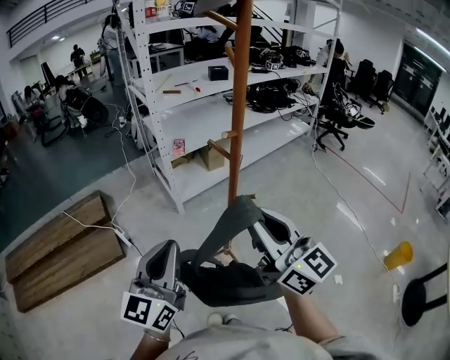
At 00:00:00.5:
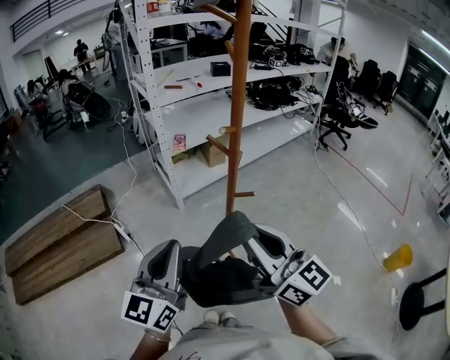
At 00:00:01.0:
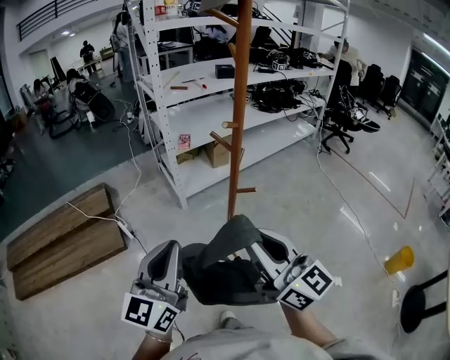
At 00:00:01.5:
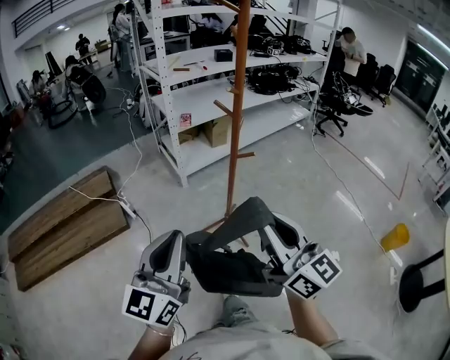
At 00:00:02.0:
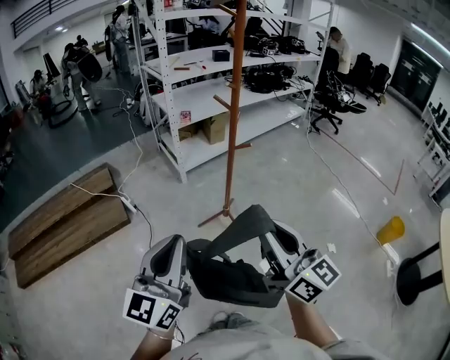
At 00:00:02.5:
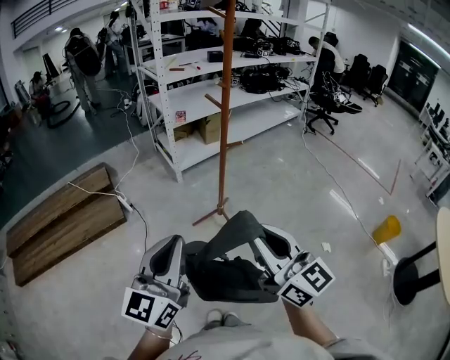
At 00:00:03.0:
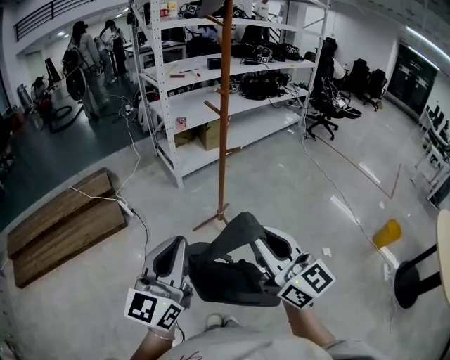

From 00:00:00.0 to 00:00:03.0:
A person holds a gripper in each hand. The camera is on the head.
From 00:00:00.0 to 00:00:01.5: Both grippers travel together backward, about 15 cm.
From 00:00:01.5 to 00:00:03.0: Both grippers move backward, approximately 10 cm.

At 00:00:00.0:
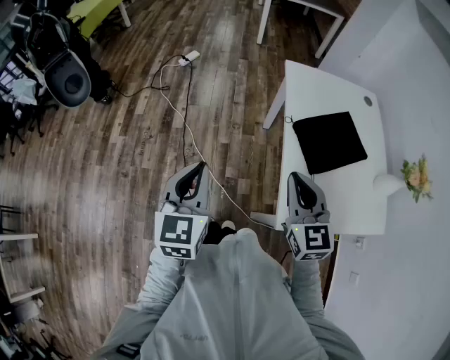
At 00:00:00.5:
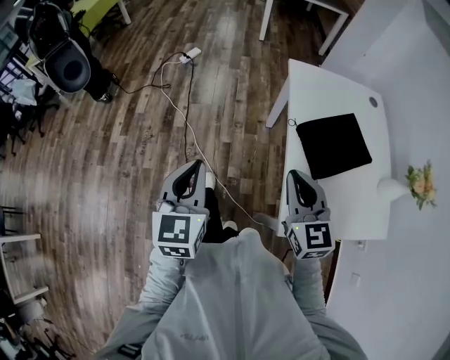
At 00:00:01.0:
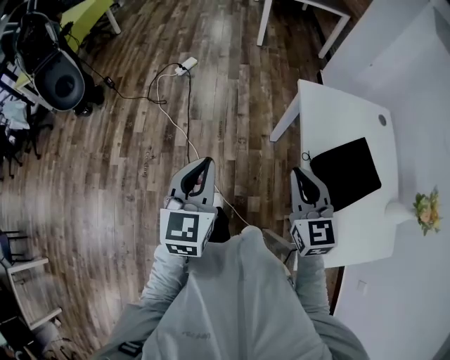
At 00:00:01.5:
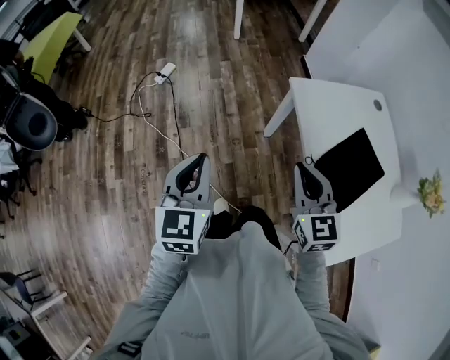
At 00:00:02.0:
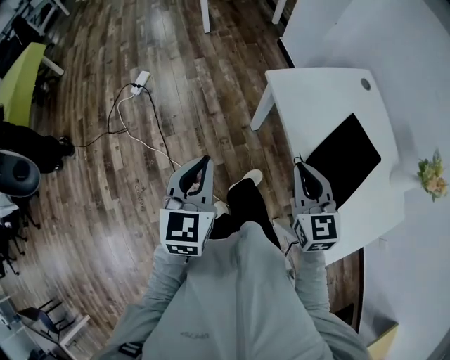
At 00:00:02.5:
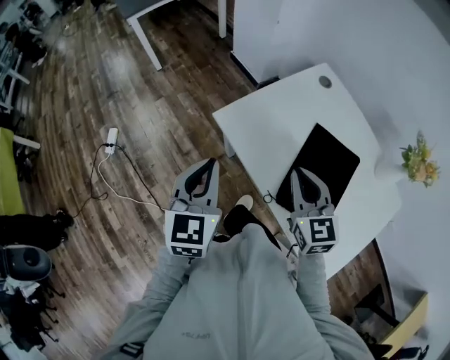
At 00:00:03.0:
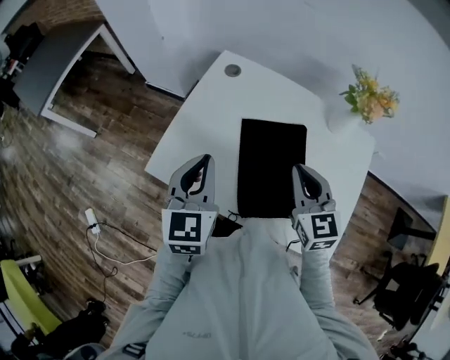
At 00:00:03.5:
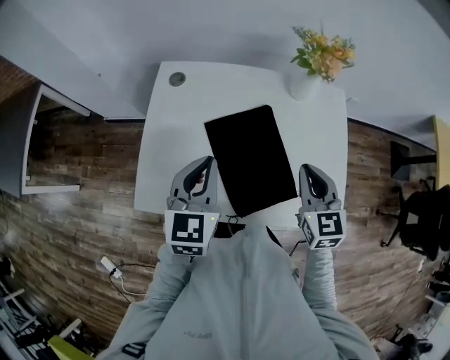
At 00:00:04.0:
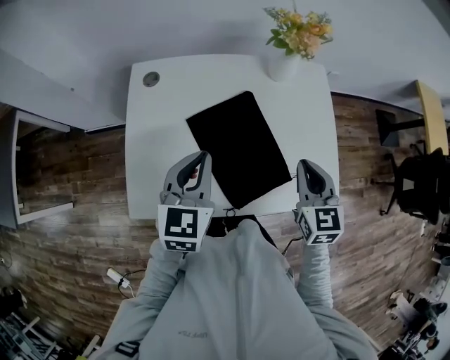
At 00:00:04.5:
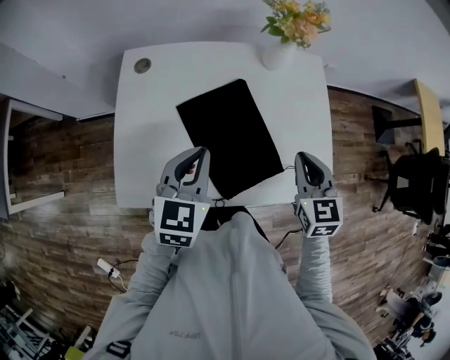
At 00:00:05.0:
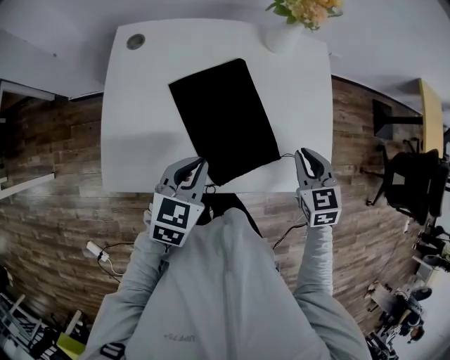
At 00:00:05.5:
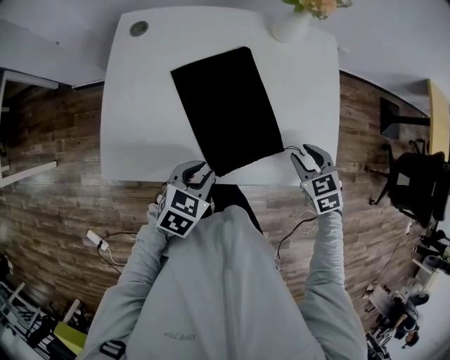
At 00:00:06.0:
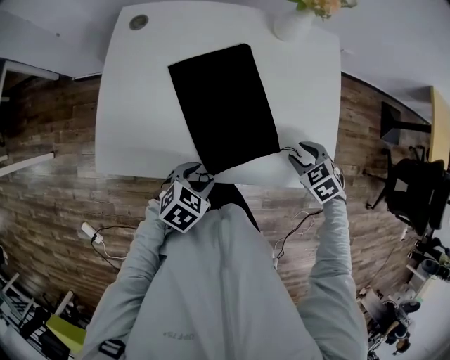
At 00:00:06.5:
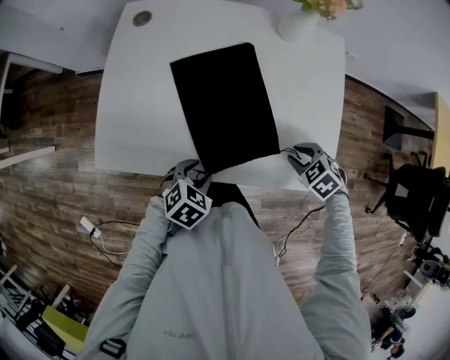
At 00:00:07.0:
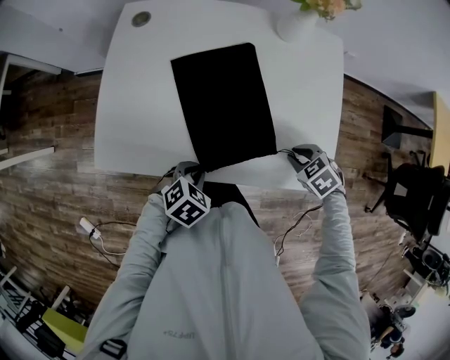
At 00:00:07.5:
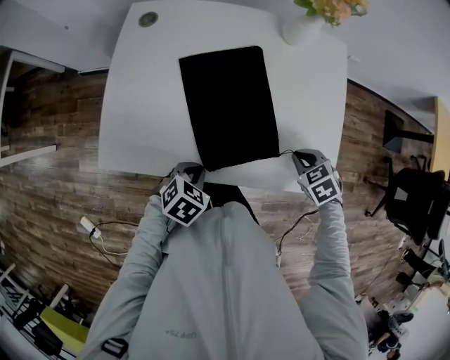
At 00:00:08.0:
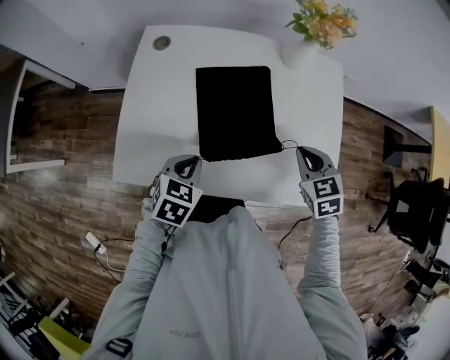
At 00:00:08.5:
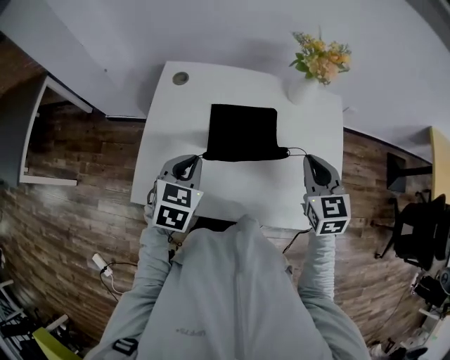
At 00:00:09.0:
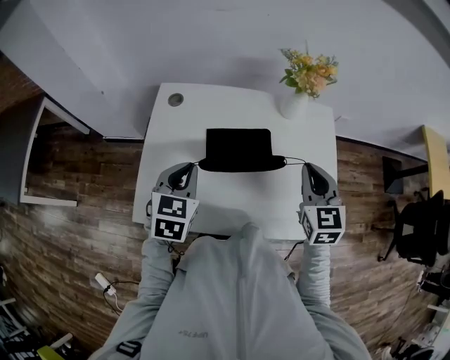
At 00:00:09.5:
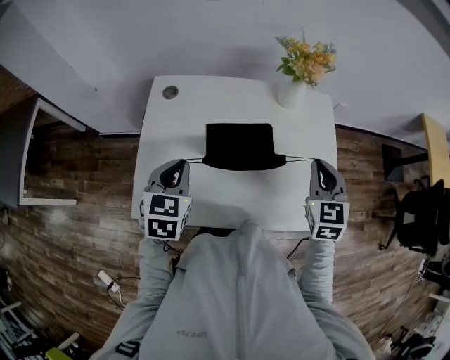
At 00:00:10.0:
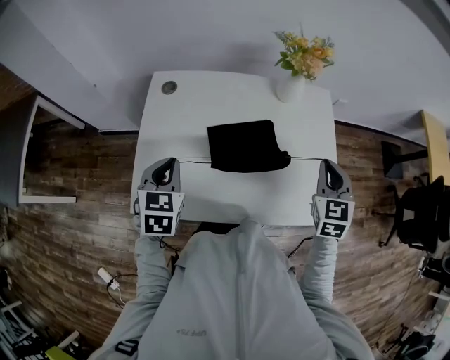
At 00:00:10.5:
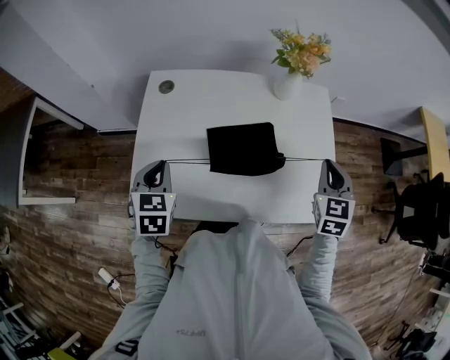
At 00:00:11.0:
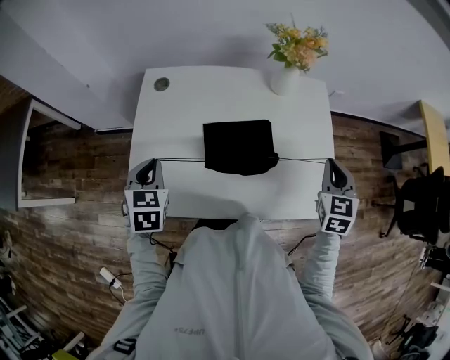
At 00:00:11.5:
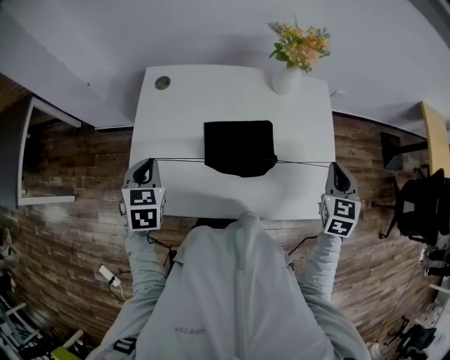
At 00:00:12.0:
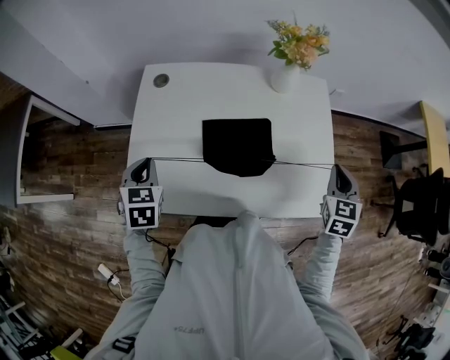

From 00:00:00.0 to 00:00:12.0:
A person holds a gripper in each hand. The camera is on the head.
From 00:00:00.0 to 00:00:02.0: The grippers both shift forward by about 30 cm. The left gripper swivels approximately 20 degrees. Meanwhile the right gripper changes its angle by approximately 20 degrees.
From 00:00:02.0 to 00:00:04.0: The left gripper moves roughly 50 cm, and turns by roughly 80 degrees; the right gripper ends up roughly 30 cm from where it was, and changes its angle by some 80 degrees.
From 00:00:04.0 to 00:00:06.0: The left gripper travels downward, backward and to the right by about 25 cm, points its fingers roughly 30 degrees further downward, and opens its fingers; the right gripper goes roughly 20 cm downward and to the right, tips its fingers downward by about 40 degrees, and opens up.
From 00:00:06.0 to 00:00:08.0: The left gripper is displaced forward, to the left and upward by roughly 15 cm, and closes. Meanwhile the right gripper heads upward, forward and to the left, covering about 15 cm, turns by roughly 30 degrees, and closes.
From 00:00:08.0 to 00:00:10.0: The left gripper travels upward, to the left and forward by approximately 15 cm, and rotates some 20 degrees. The right gripper goes some 10 cm upward, and rotates roughly 30 degrees.
From 00:00:10.0 to 00:00:12.0: The right gripper shifts approximately 5 cm to the right, while the left gripper shifts roughly 5 cm to the left.

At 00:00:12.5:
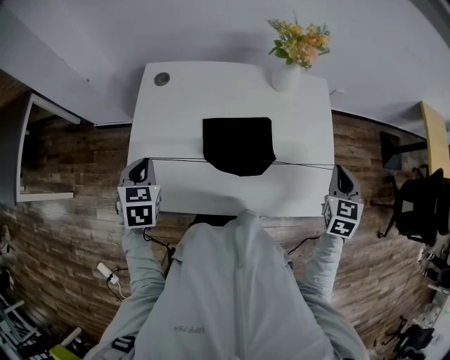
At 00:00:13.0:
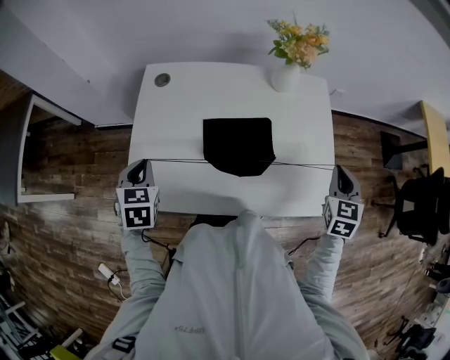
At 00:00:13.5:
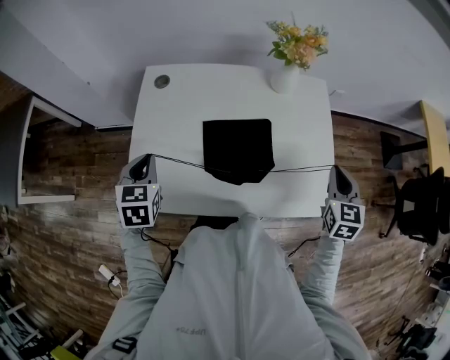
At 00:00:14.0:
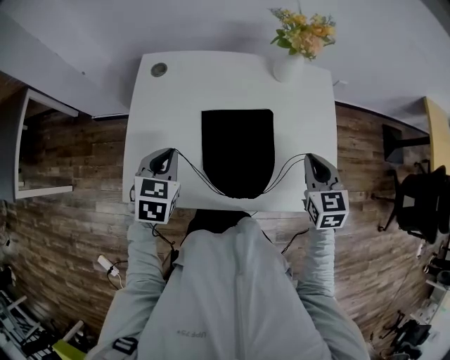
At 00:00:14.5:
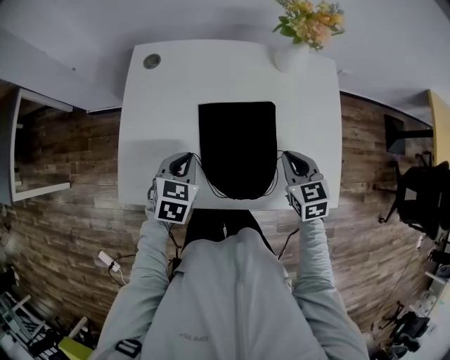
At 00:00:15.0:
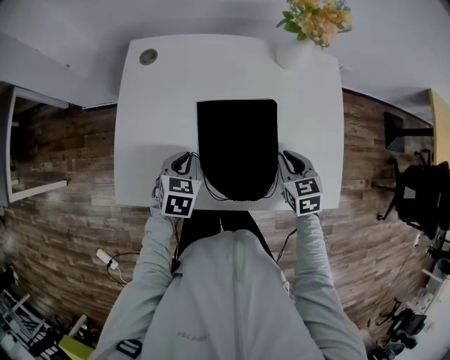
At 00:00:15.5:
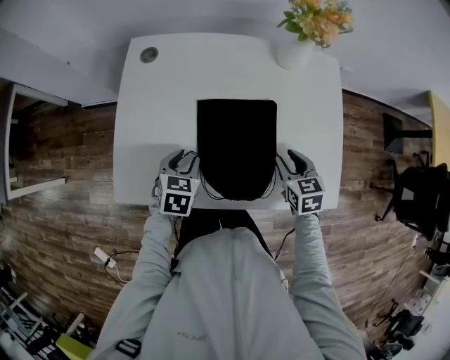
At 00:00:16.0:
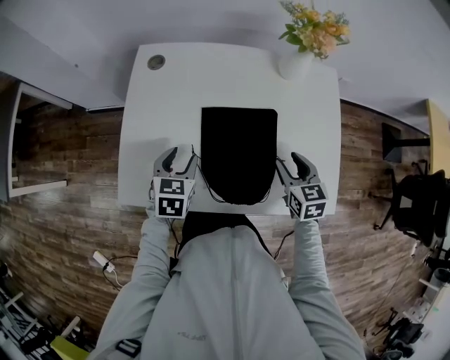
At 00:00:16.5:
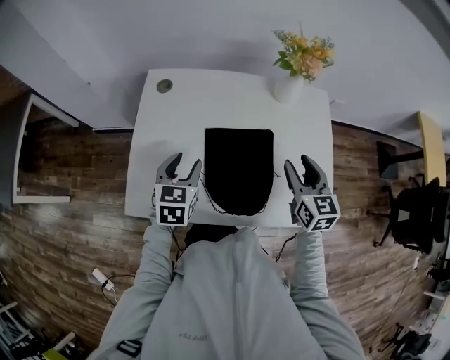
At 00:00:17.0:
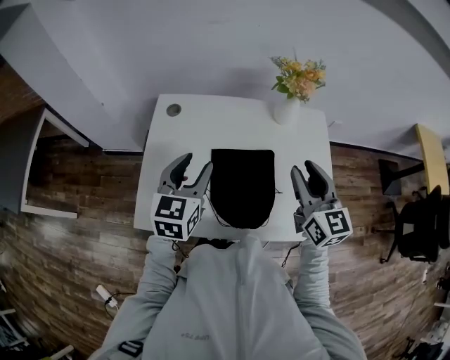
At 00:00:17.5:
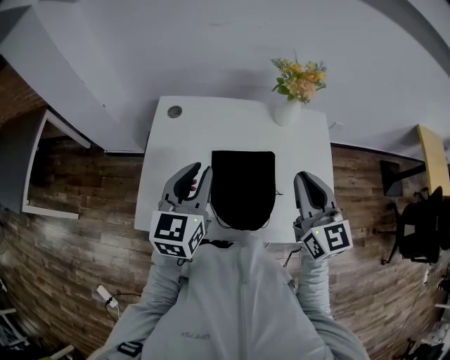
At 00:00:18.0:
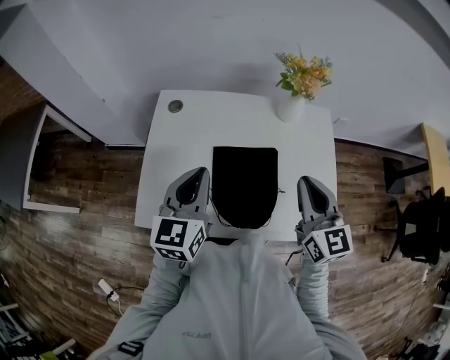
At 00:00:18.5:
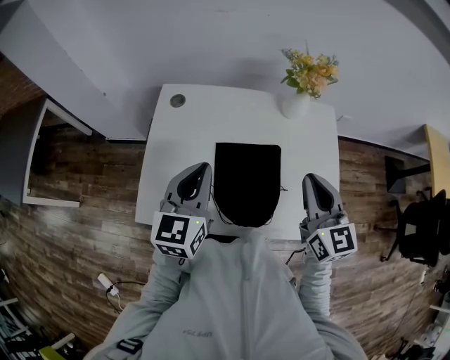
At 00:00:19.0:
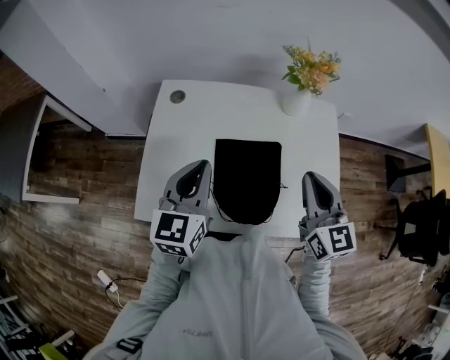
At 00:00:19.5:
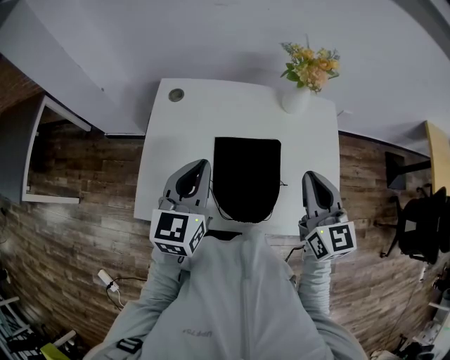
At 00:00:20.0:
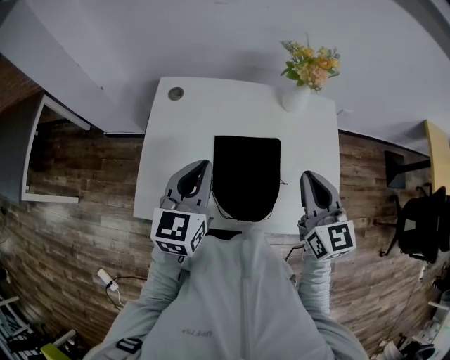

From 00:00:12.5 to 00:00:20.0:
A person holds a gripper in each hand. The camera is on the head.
From 00:00:12.5 to 00:00:14.5: The right gripper shifts about 20 cm to the left and downward, and turns by roughly 30 degrees, while the left gripper travels to the right and downward by approximately 15 cm.
From 00:00:14.5 to 00:00:16.5: The left gripper heads upward, covering approximately 5 cm, and opens. Meanwhile the right gripper heads upward, covering approximately 10 cm, turns by about 20 degrees, and opens up.
From 00:00:16.5 to 00:00:18.0: Both grippers travel together upward, about 10 cm. The right gripper closes up. The left gripper changes its angle by roughly 20 degrees, and closes.
From 00:00:18.0 to 00:00:20.0: Neither gripper changes place.

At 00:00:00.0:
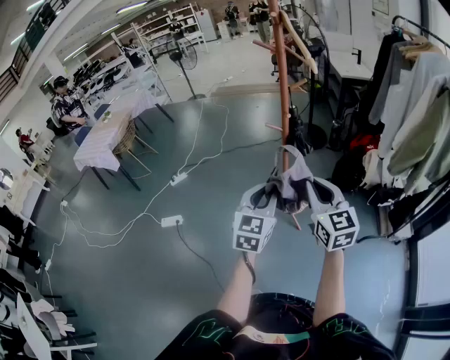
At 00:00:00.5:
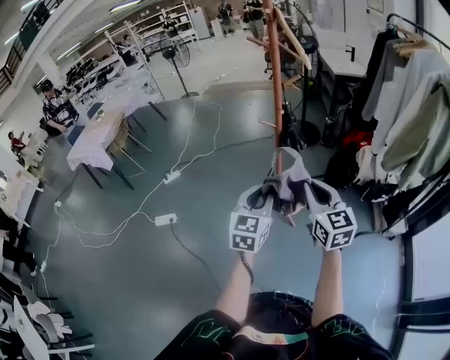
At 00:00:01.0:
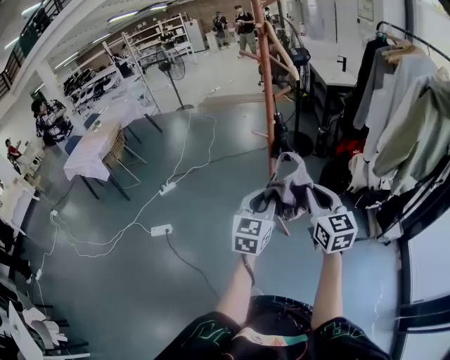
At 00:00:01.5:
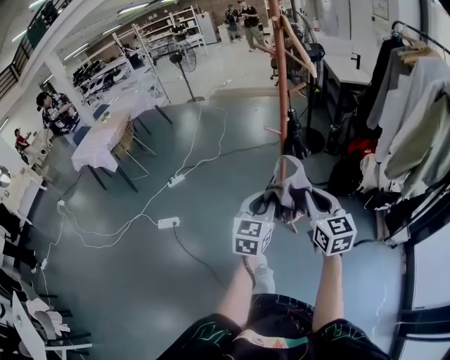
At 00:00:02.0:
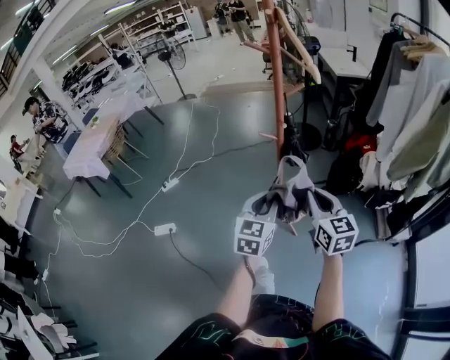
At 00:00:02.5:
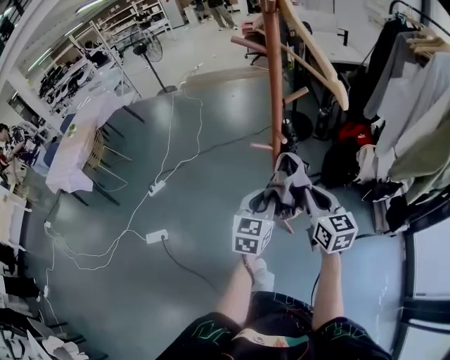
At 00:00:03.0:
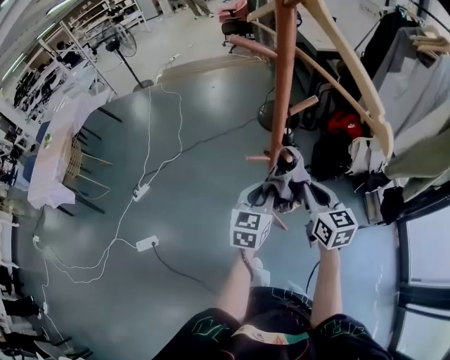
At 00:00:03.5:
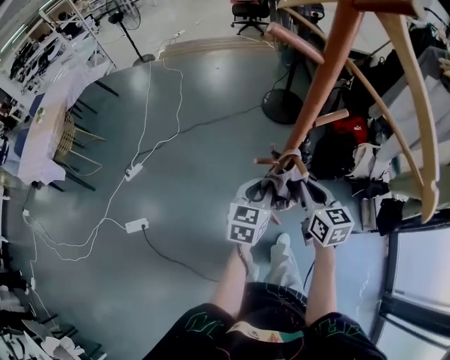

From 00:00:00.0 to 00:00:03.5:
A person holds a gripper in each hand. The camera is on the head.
From 00:00:00.0 to 00:00:02.0: The left gripper goes about 10 cm forward. Meanwhile the right gripper travels forward and downward by roughly 10 cm.
From 00:00:02.0 to 00:00:03.5: The grippers both shift forward by some 25 cm.
